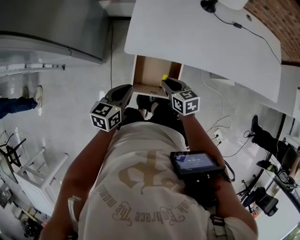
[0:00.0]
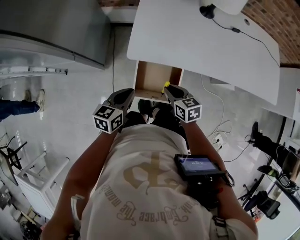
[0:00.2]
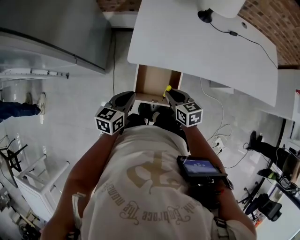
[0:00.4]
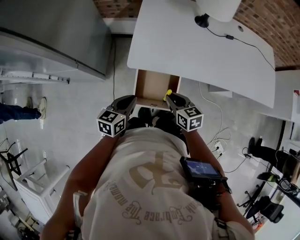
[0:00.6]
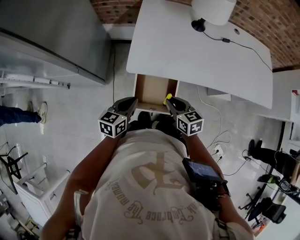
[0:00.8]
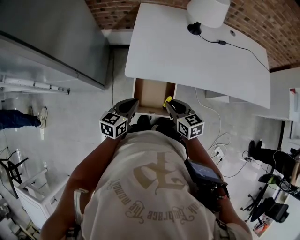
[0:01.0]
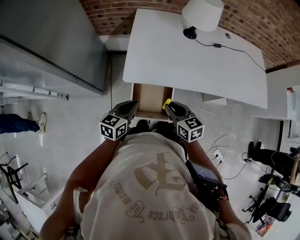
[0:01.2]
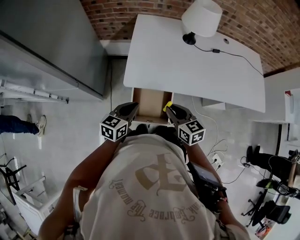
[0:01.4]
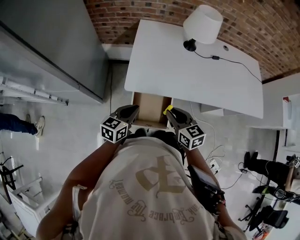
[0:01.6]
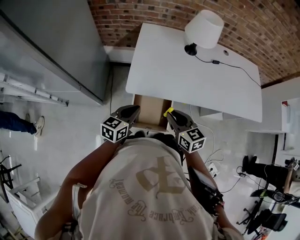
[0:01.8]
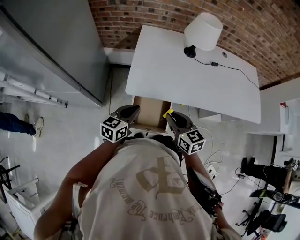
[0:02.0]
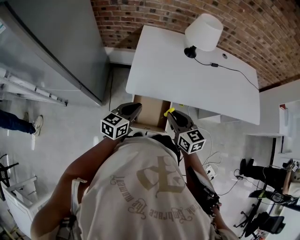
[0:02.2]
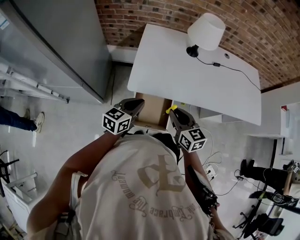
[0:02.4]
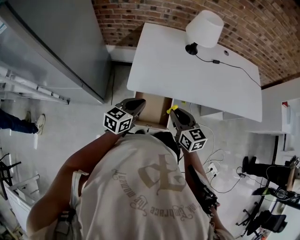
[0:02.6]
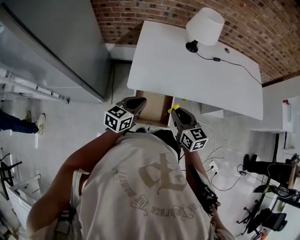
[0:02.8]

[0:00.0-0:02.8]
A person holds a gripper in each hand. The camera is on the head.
0:00.0 to 0:01.4: The left gripper heads upward, covering roughly 5 cm. The right gripper moves upward, roughly 15 cm.
0:01.4 to 0:02.8: The grippers stay close to where they were, moving slightly.

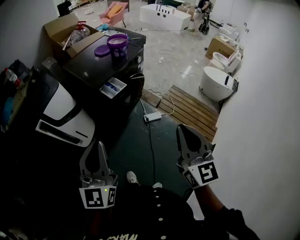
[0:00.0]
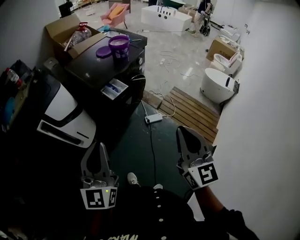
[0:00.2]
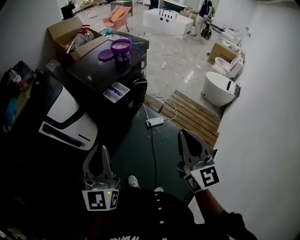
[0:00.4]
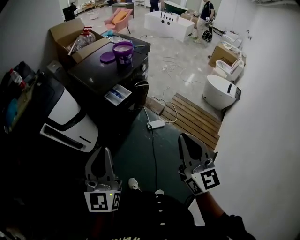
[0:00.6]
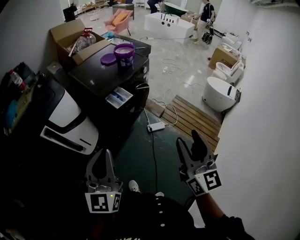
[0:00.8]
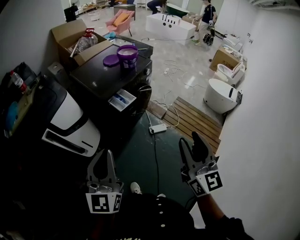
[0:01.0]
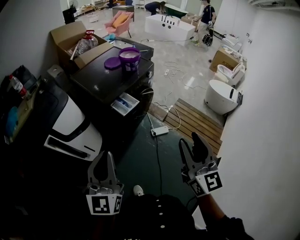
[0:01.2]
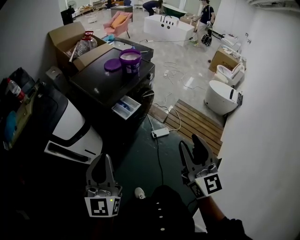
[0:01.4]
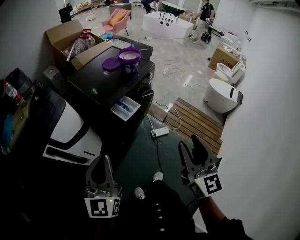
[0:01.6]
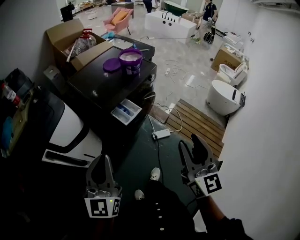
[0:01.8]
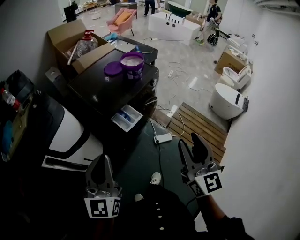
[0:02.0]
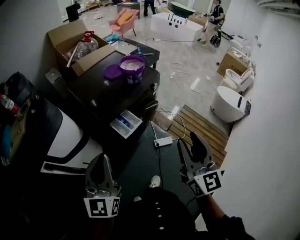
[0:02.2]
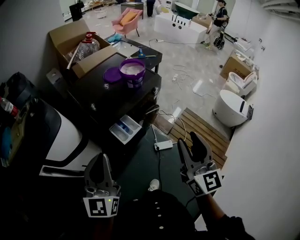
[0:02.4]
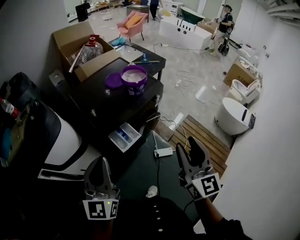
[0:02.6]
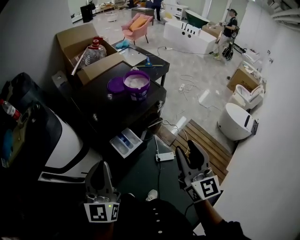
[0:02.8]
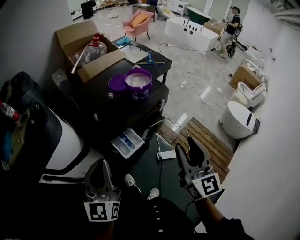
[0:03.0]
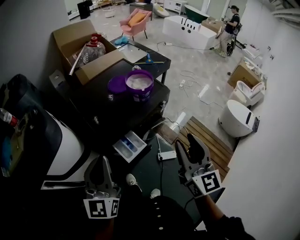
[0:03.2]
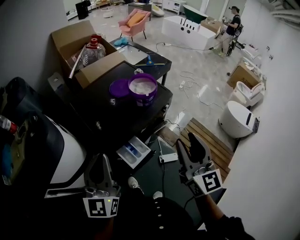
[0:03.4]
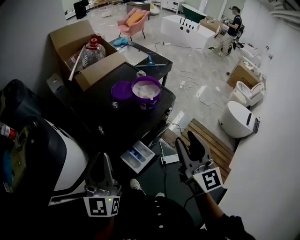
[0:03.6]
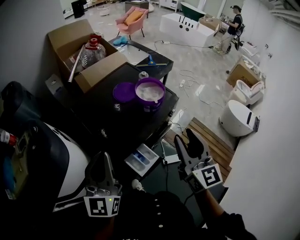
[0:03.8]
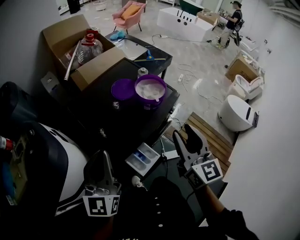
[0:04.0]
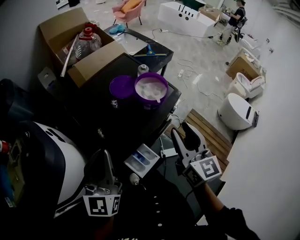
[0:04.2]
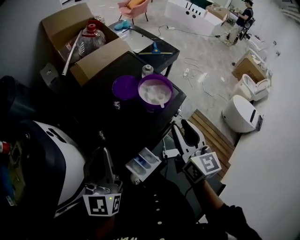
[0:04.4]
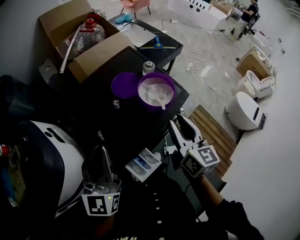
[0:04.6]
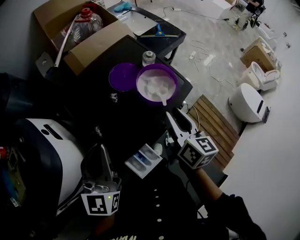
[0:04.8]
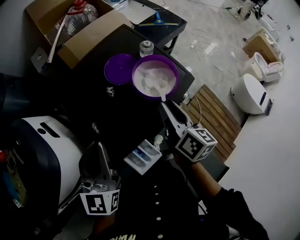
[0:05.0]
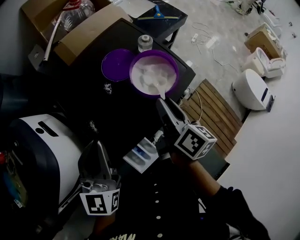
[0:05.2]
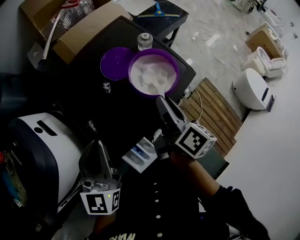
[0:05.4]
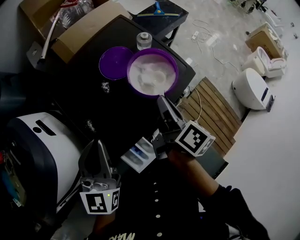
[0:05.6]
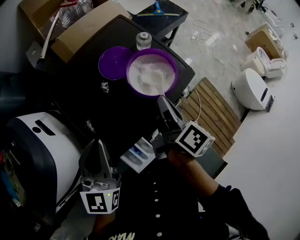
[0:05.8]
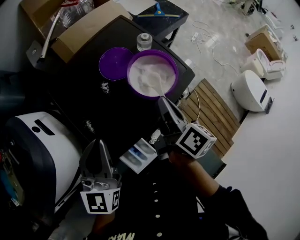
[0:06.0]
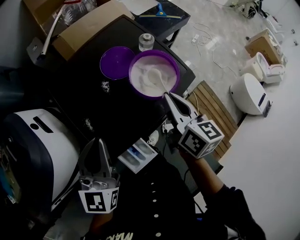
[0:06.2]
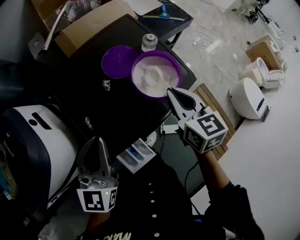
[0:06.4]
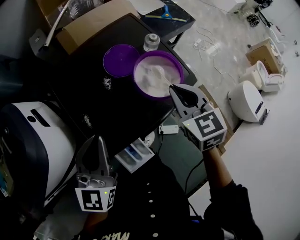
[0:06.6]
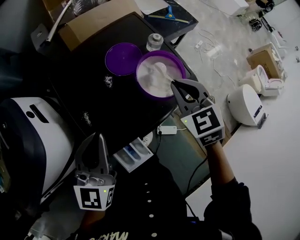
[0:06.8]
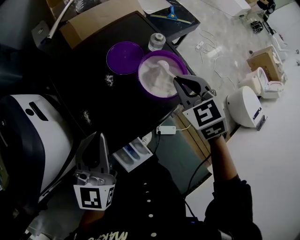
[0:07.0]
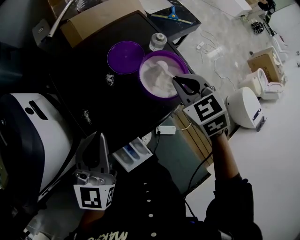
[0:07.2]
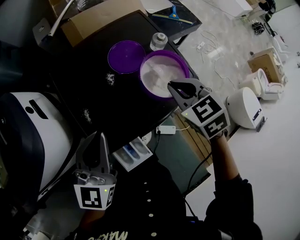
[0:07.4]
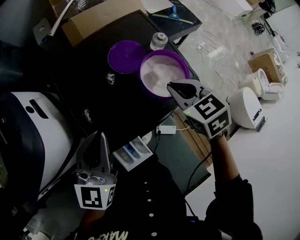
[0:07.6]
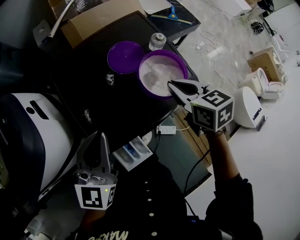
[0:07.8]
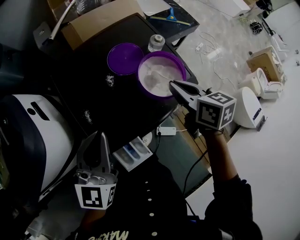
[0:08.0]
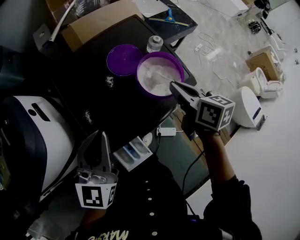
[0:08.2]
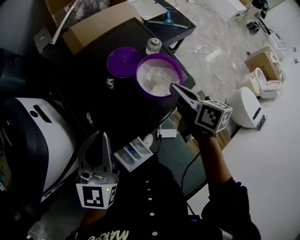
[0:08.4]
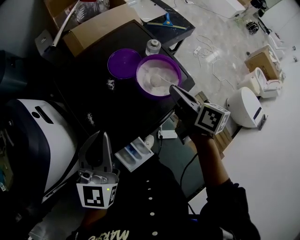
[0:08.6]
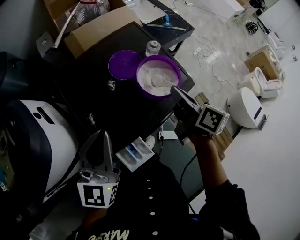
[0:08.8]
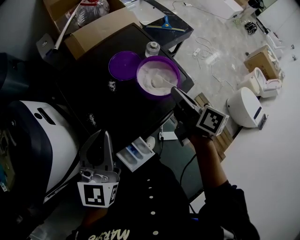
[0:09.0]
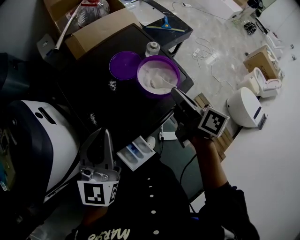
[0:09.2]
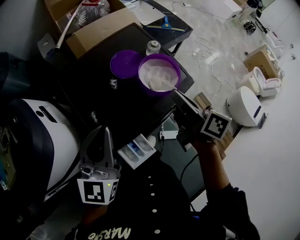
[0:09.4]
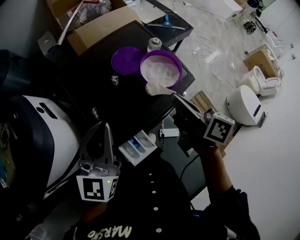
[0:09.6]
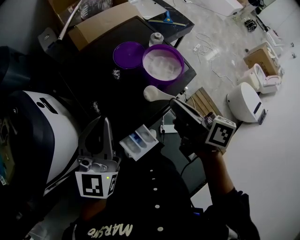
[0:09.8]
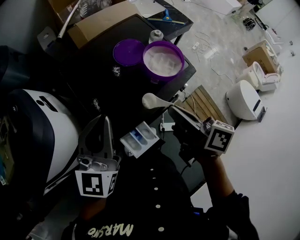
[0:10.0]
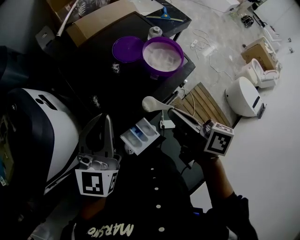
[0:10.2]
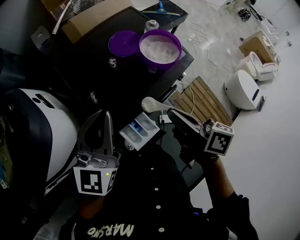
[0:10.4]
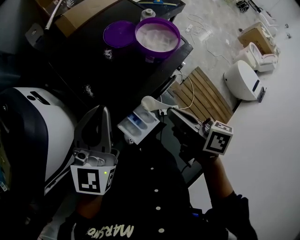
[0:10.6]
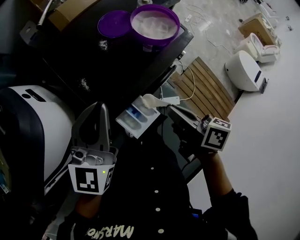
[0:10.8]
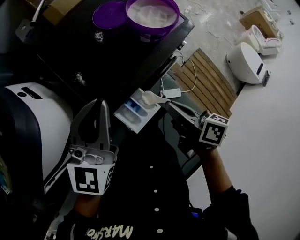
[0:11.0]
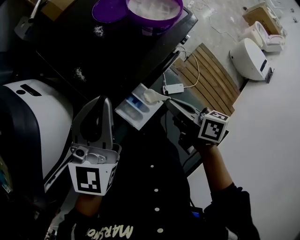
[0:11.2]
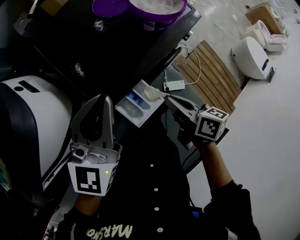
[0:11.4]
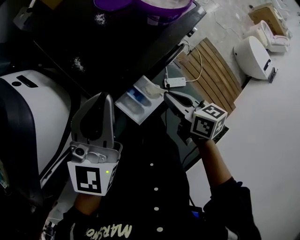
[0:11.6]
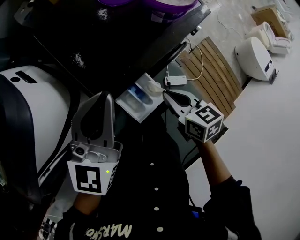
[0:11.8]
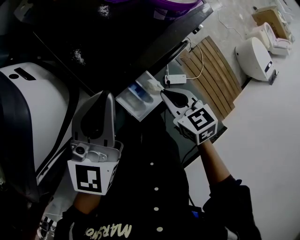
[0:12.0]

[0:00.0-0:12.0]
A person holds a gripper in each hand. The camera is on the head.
0:00.0 to 0:01.6: The two grippers go approximately 10 cm forward and to the left. The right gripper opens its fingers.
0:01.6 to 0:03.0: Both grippers travel together forward, about 25 cm.
0:03.0 to 0:04.4: Both grippers move forward, roughly 25 cm.
0:04.4 to 0:06.0: The right gripper is displaced downward and forward by some 15 cm, rolls clockwise, seen from behind, by roughly 40 degrees, and closes up. The left gripper travels downward and forward by about 10 cm.
0:06.0 to 0:07.6: The right gripper rolls counterclockwise, seen from behind, by roughly 70 degrees.
0:07.6 to 0:09.0: The right gripper changes place by approximately 5 cm, and rotates around the line of its fingers by roughly 60 degrees, clockwise from behind.
0:09.0 to 0:10.4: The right gripper goes approximately 20 cm backward and to the left.
0:10.4 to 0:12.0: The right gripper is displaced downward by roughly 20 cm, and swivels approximately 50 degrees. Meanwhile the left gripper travels downward by some 10 cm.

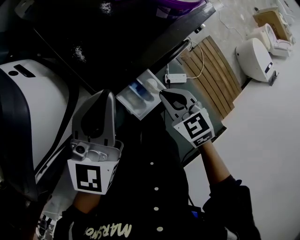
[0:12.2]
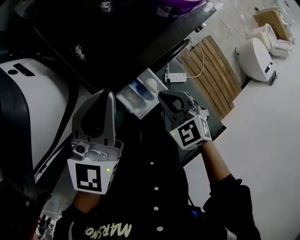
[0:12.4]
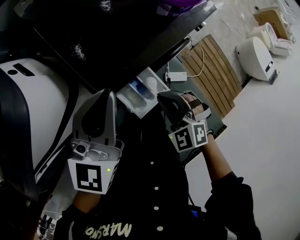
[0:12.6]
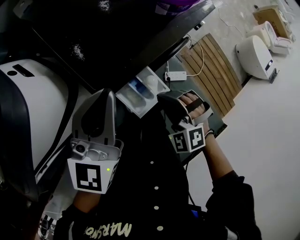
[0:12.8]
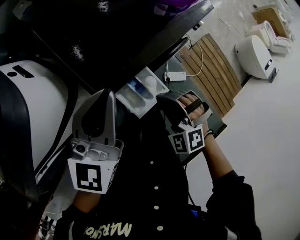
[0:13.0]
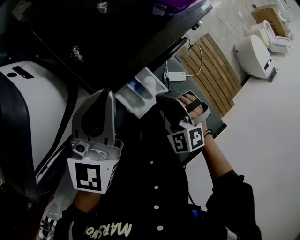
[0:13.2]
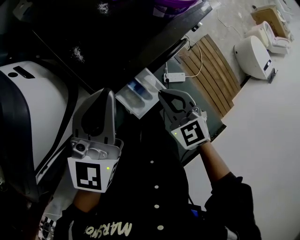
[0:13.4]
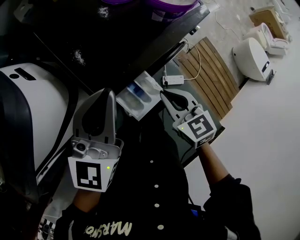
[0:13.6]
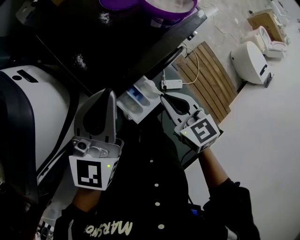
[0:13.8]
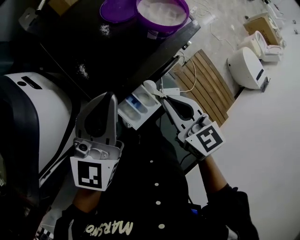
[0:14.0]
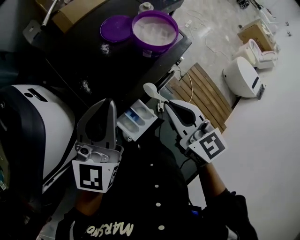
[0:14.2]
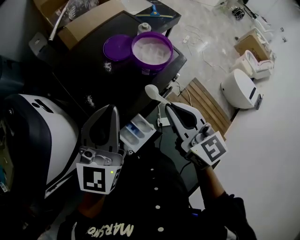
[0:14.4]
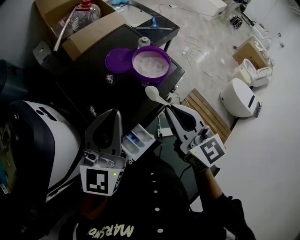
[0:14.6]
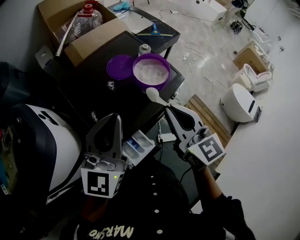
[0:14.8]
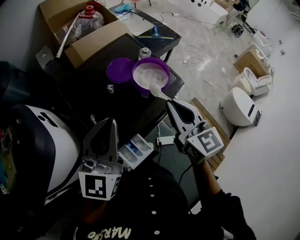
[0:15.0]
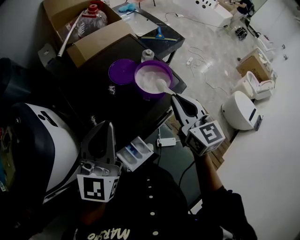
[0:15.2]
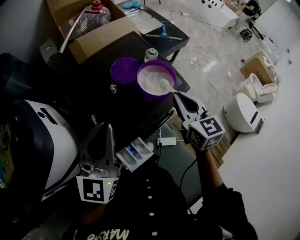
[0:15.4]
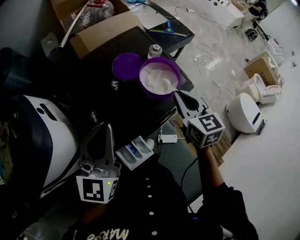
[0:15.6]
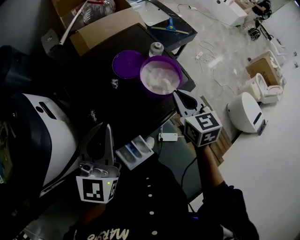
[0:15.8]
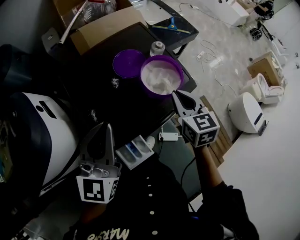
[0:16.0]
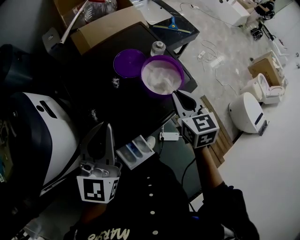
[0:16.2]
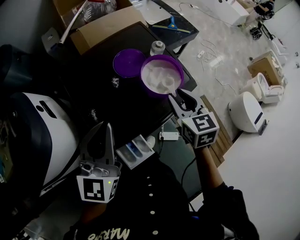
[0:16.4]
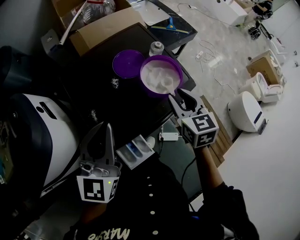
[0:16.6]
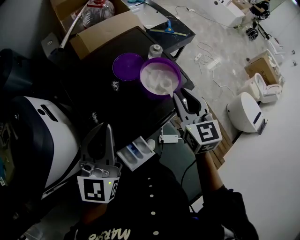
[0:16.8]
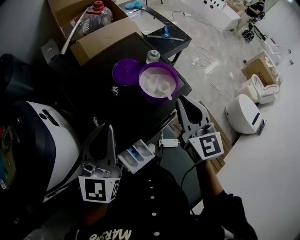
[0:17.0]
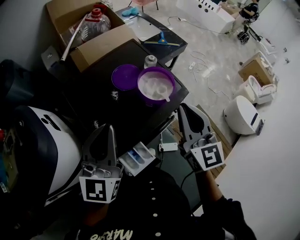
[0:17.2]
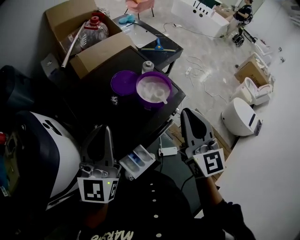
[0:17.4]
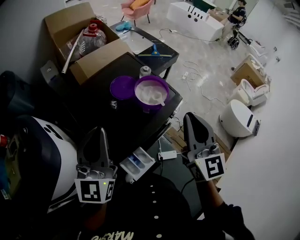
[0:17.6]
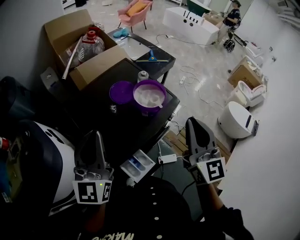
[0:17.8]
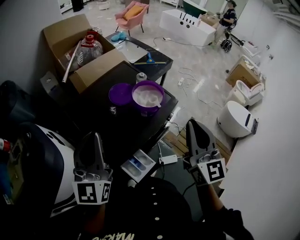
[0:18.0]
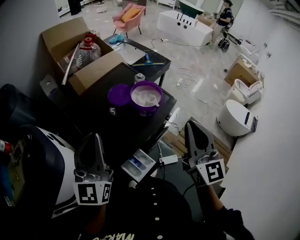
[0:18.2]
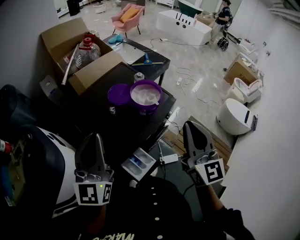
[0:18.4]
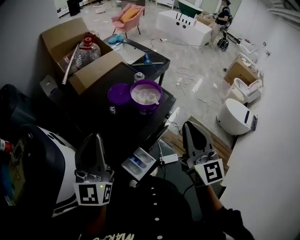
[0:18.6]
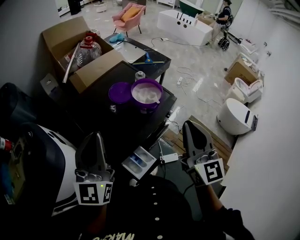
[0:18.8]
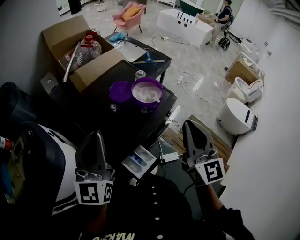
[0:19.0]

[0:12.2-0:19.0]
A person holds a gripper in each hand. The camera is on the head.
0:13.6 to 0:15.0: The right gripper moves upward and forward, some 25 cm, and changes its angle by approximately 30 degrees. Meanwhile the left gripper moves upward and forward, some 15 cm.
0:15.0 to 0:16.2: The right gripper shifts roughly 15 cm downward and forward, and rotates roughly 20 degrees; the left gripper ends up approximately 5 cm from where it was.
0:16.2 to 0:17.6: The right gripper travels upward and backward by approximately 20 cm, angles its fingers upward, by about 30 degrees, and opens, then closes again; the left gripper travels upward by roughly 5 cm.
0:17.6 to 0:19.0: The right gripper shifts approximately 5 cm backward.

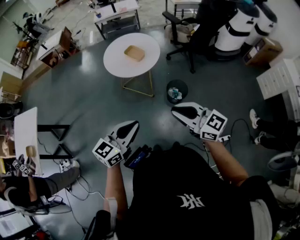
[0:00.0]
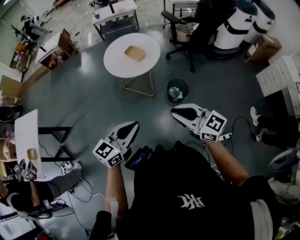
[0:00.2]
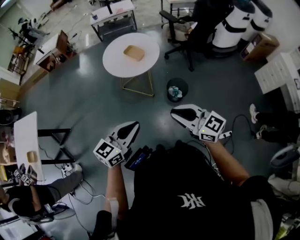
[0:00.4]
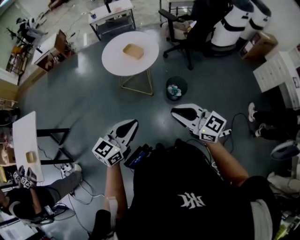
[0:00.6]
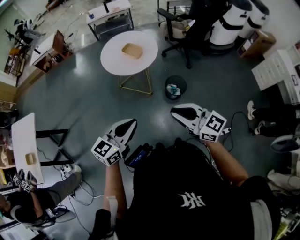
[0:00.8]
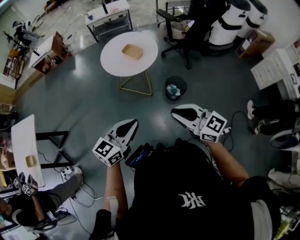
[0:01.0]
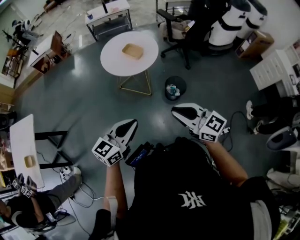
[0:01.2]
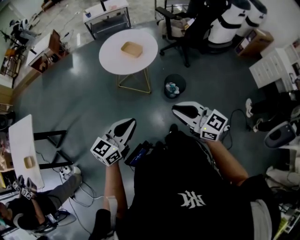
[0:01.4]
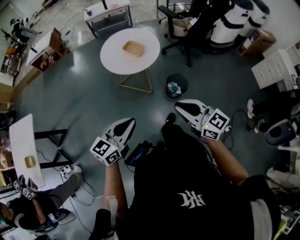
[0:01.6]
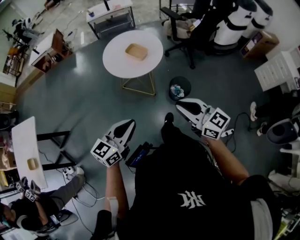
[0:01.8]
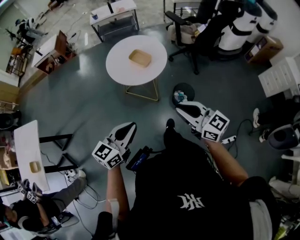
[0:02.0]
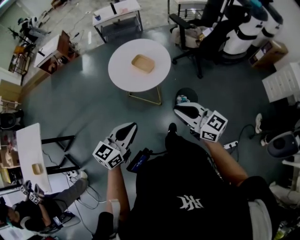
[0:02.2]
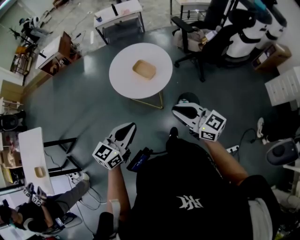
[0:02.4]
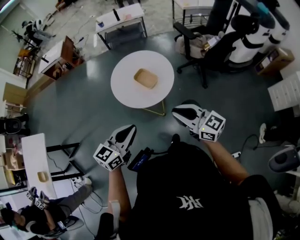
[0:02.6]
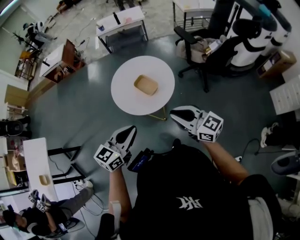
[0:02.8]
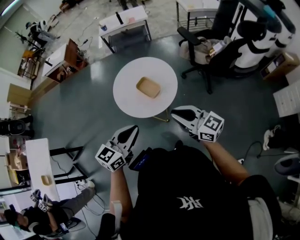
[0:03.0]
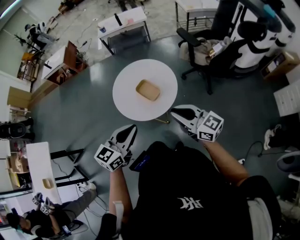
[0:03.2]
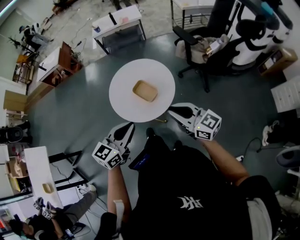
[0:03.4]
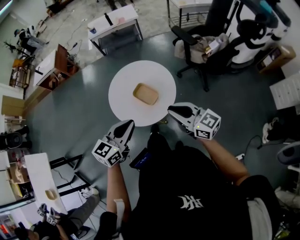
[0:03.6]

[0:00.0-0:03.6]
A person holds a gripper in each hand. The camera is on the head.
0:00.0 to 0:01.8: The left gripper shifts some 10 cm to the left and forward; the right gripper is displaced forward by some 5 cm.
0:01.8 to 0:03.6: Both grippers travel together forward, roughly 35 cm.
